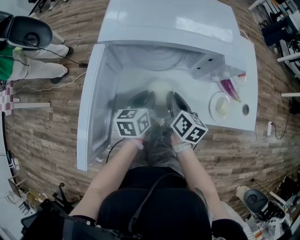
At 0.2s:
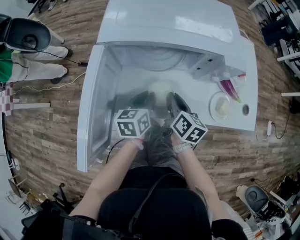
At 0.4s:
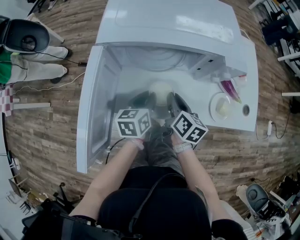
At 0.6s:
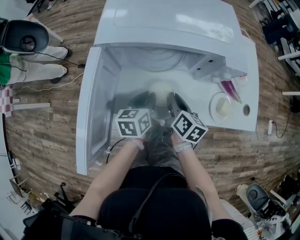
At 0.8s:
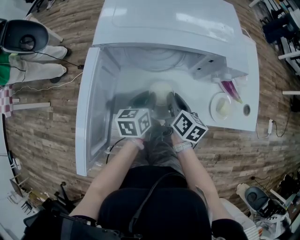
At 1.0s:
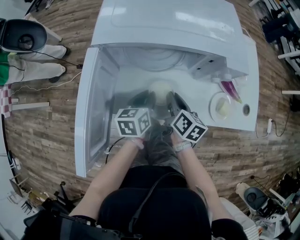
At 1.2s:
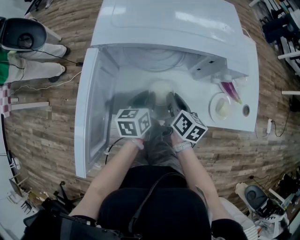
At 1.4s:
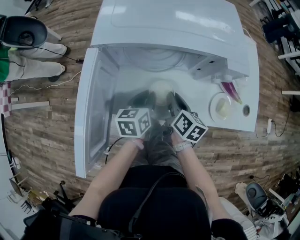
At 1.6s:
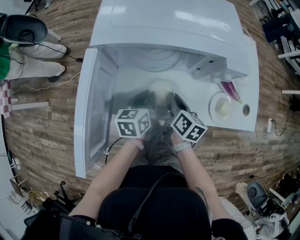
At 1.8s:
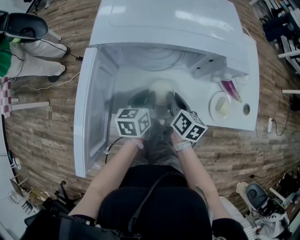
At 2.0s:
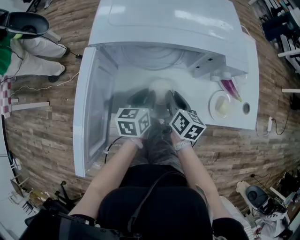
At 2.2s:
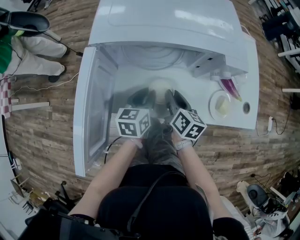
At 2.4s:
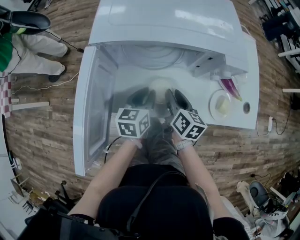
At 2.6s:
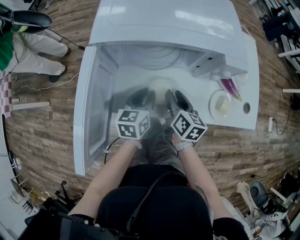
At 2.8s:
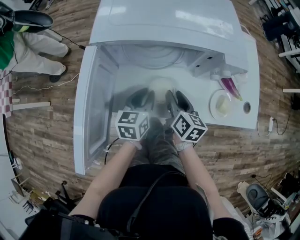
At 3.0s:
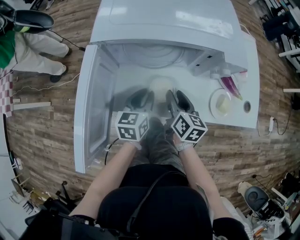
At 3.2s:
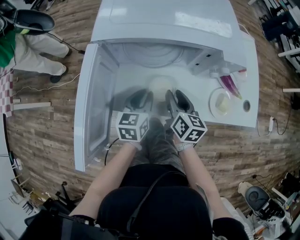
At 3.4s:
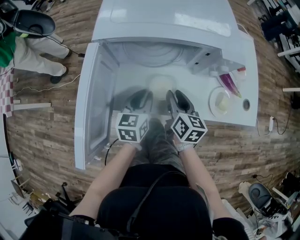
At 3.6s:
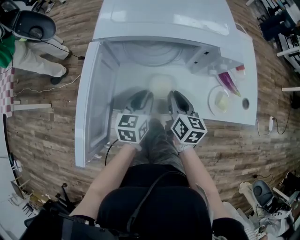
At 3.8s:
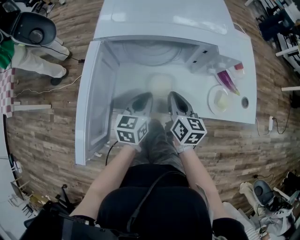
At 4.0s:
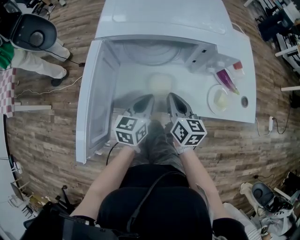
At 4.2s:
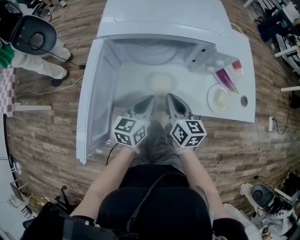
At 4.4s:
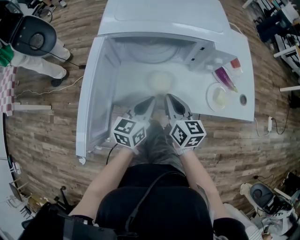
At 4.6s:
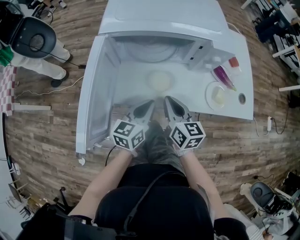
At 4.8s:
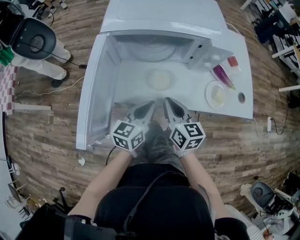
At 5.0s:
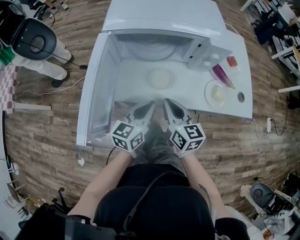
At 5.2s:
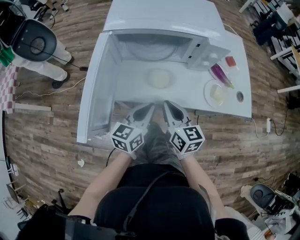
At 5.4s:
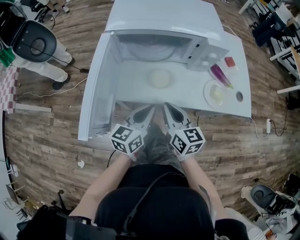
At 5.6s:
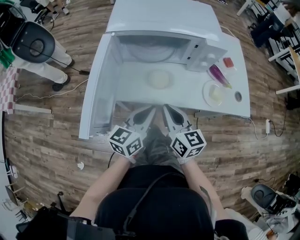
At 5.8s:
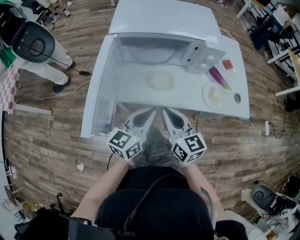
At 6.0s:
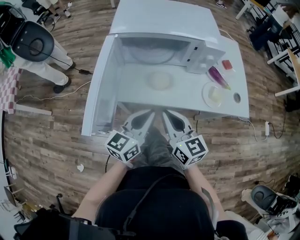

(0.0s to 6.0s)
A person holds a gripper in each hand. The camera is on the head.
0.0s - 3.0s: The grippers move only a little.
3.0s - 4.4s: The two grippers go roughly 5 cm backward. The right gripper closes its fingers.
4.4s - 6.0s: Both grippers move backward and upward, approximately 10 cm.

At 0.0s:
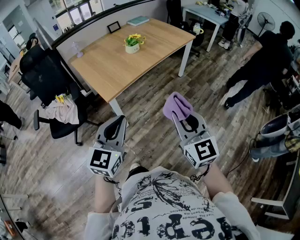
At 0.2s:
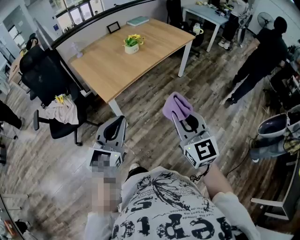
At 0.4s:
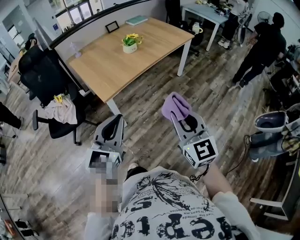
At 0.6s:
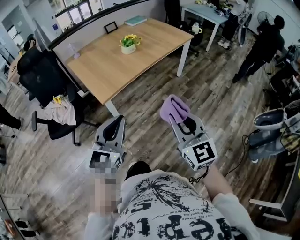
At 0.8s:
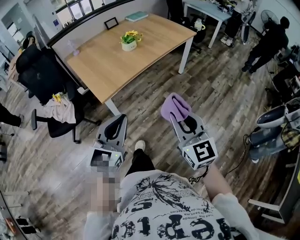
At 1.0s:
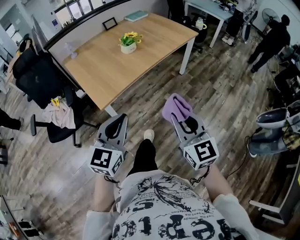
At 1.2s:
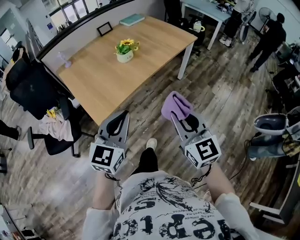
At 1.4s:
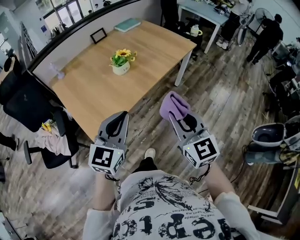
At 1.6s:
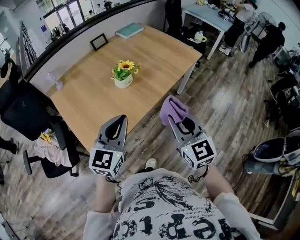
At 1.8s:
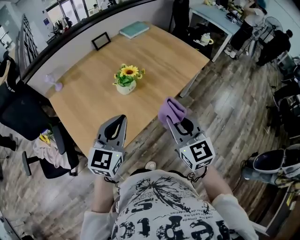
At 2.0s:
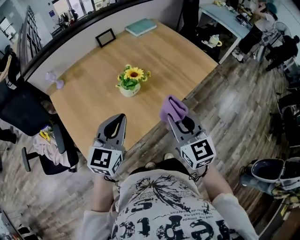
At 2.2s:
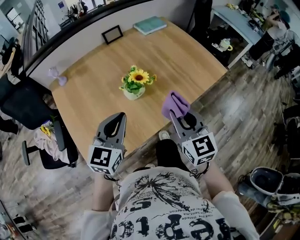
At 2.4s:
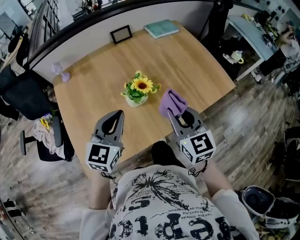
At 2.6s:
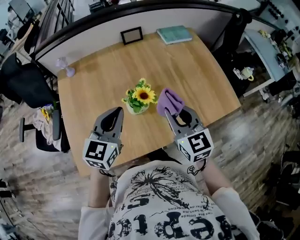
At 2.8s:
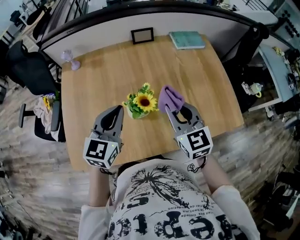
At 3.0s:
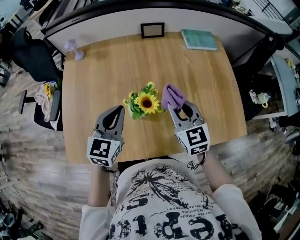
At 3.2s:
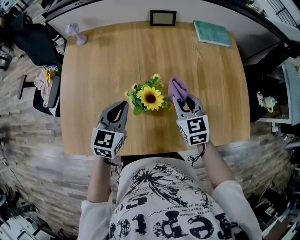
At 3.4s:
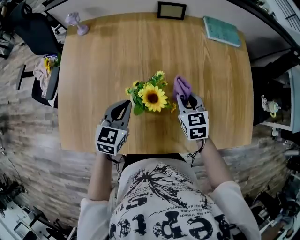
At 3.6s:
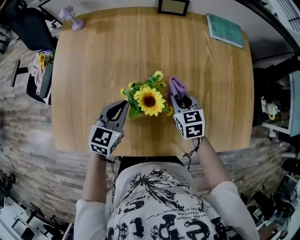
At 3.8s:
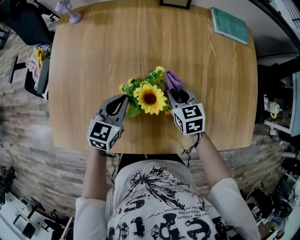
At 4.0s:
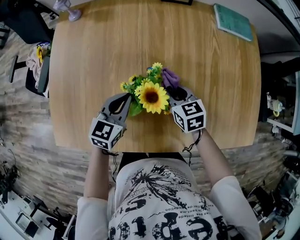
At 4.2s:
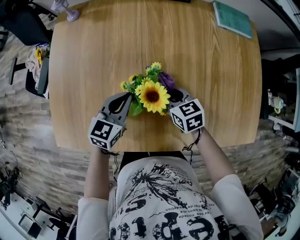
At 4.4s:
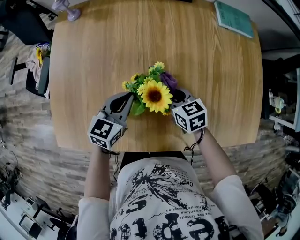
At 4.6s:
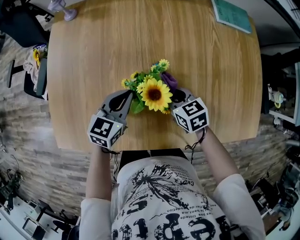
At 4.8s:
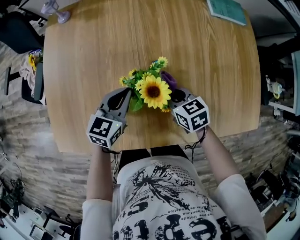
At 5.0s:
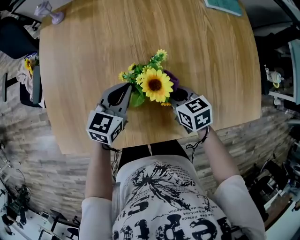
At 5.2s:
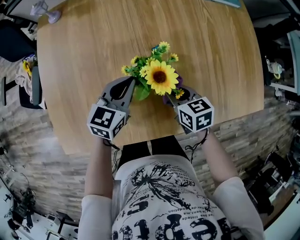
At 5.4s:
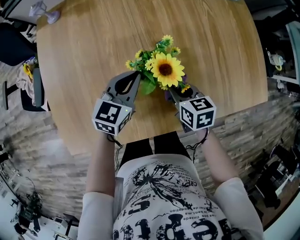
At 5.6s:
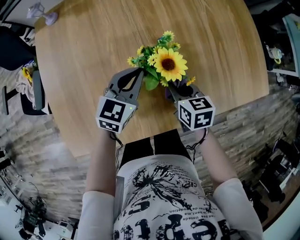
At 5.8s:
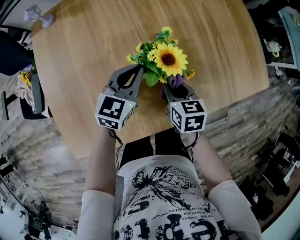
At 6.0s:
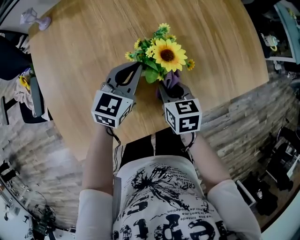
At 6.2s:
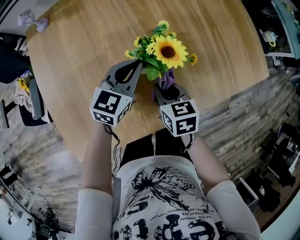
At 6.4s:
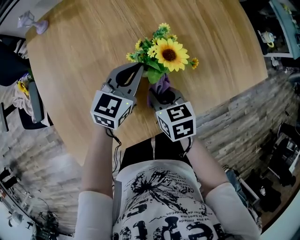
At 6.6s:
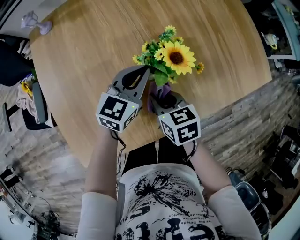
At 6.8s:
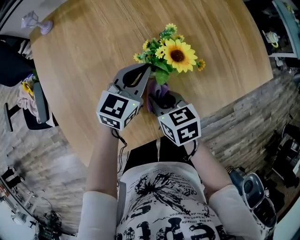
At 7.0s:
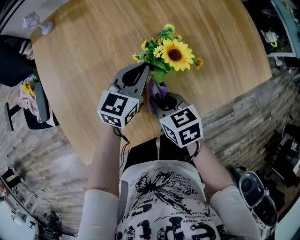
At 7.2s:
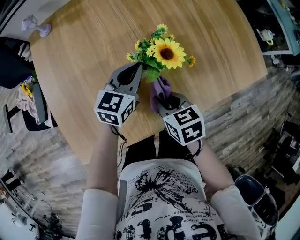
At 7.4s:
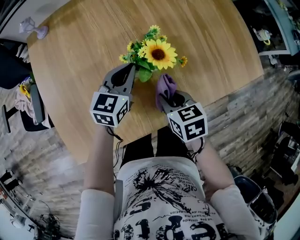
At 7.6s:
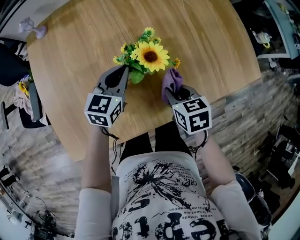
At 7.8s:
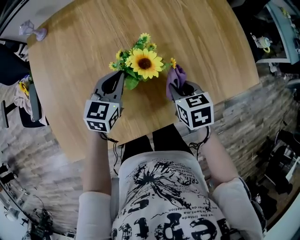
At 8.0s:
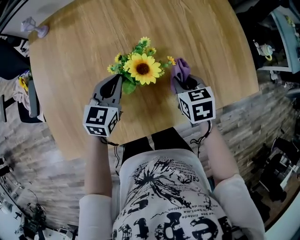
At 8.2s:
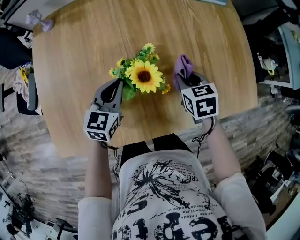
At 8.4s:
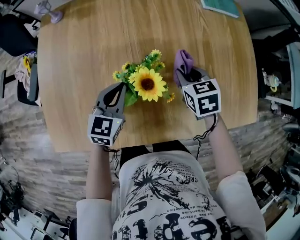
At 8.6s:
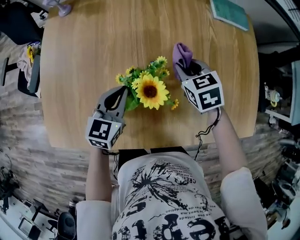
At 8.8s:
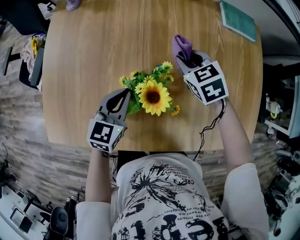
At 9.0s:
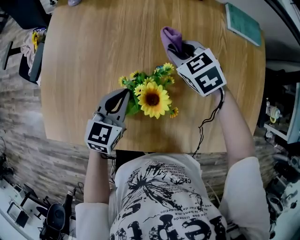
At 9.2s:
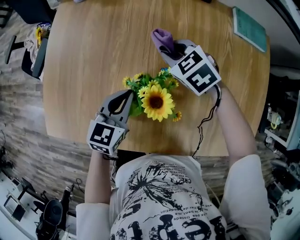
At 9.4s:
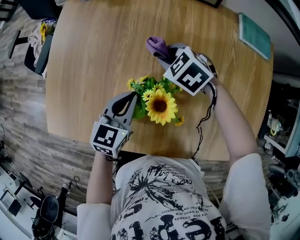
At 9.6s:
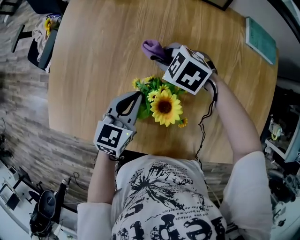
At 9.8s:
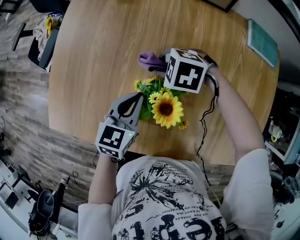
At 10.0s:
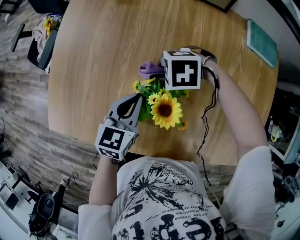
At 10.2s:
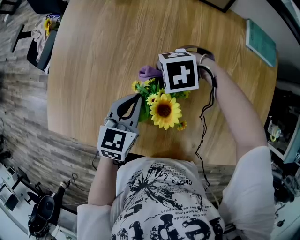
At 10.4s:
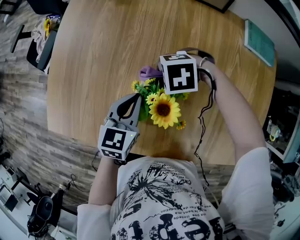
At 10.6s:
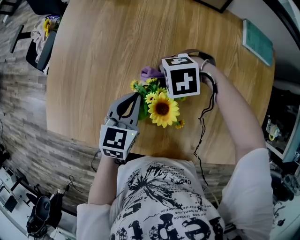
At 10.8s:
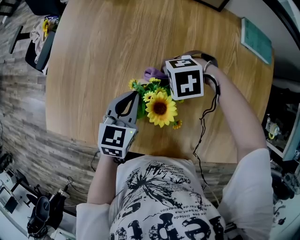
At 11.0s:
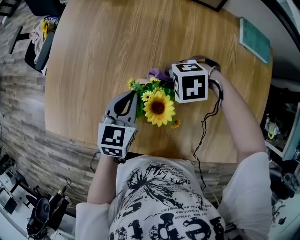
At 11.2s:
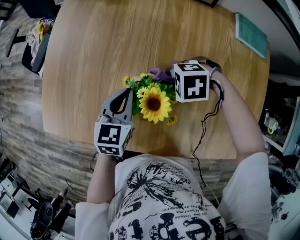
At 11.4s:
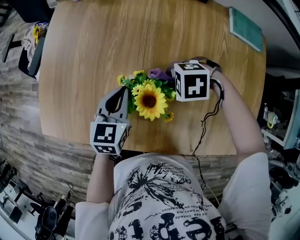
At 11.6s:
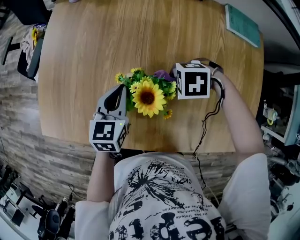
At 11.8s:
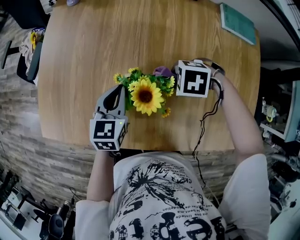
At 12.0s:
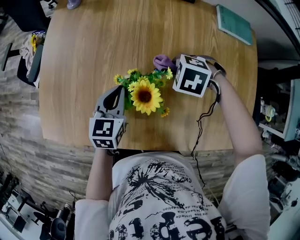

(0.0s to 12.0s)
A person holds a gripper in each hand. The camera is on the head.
0.0s - 1.6s: The two grippers travel together, forward, about 40 cm.
1.6s - 3.0s: The right gripper ends up roughly 50 cm from where it was, and rotates roughly 40 degrees; the left gripper ends up about 35 cm from where it was, and swivels some 40 degrees.
3.0s - 4.4s: The two grippers go roughly 20 cm downward. The right gripper turns by roughly 30 degrees.
4.4s - 6.0s: The right gripper shifts by roughly 10 cm, and turns by approximately 40 degrees. The left gripper turns by some 20 degrees.
6.0s - 7.6s: The right gripper heads to the right, covering about 5 cm.
7.6s - 9.0s: The left gripper turns by some 30 degrees; the right gripper ends up roughly 30 cm from where it was, and rotates around the line of its fingers by some 50 degrees, counterclockwise from behind.
9.0s - 10.4s: The right gripper changes place by roughly 15 cm, and swivels about 70 degrees.
10.4s - 12.0s: The right gripper changes place by about 10 cm, and swivels approximately 30 degrees.

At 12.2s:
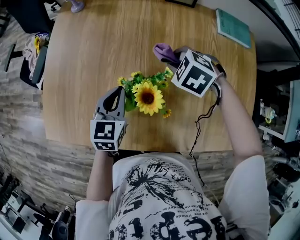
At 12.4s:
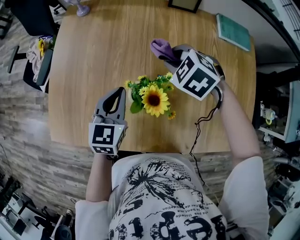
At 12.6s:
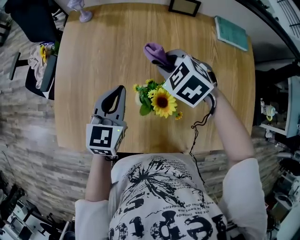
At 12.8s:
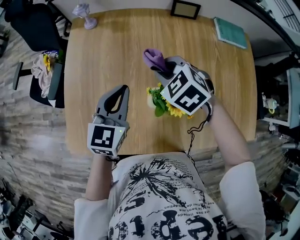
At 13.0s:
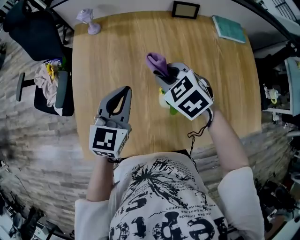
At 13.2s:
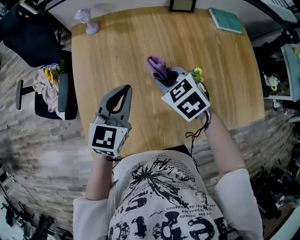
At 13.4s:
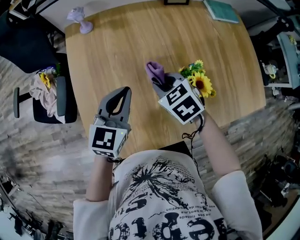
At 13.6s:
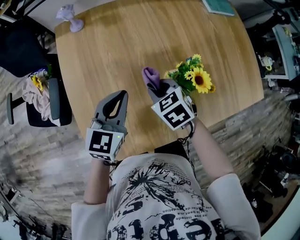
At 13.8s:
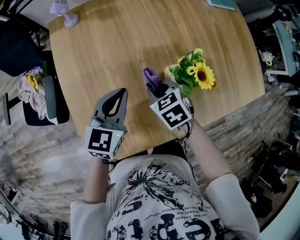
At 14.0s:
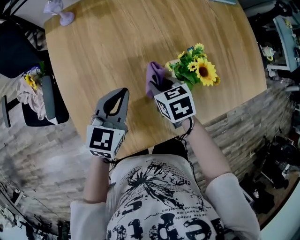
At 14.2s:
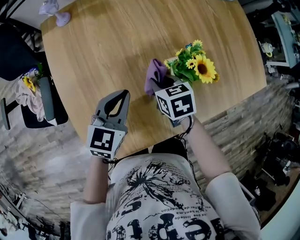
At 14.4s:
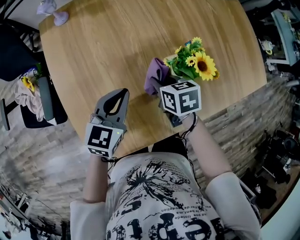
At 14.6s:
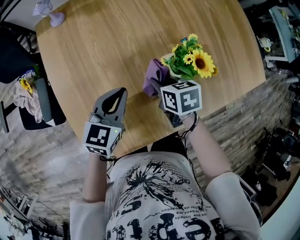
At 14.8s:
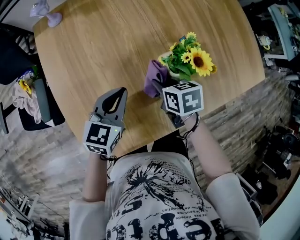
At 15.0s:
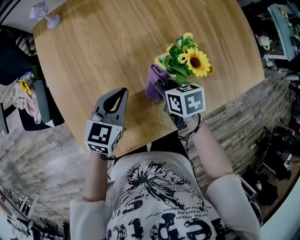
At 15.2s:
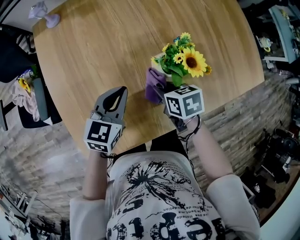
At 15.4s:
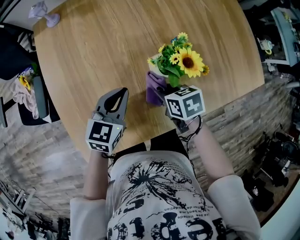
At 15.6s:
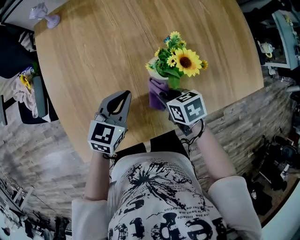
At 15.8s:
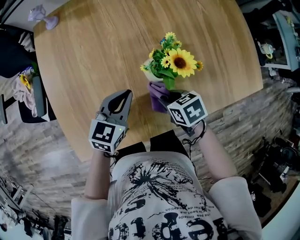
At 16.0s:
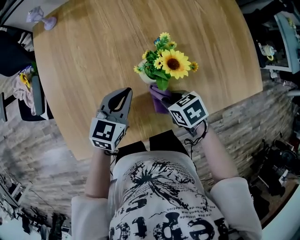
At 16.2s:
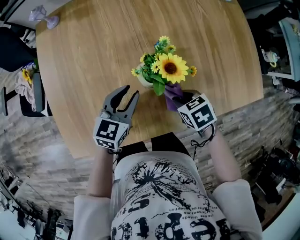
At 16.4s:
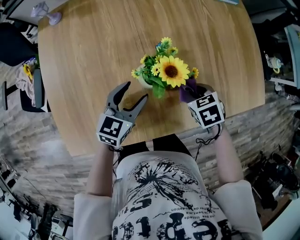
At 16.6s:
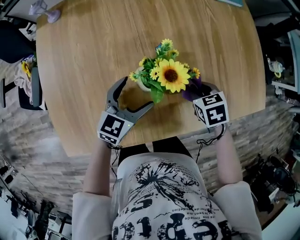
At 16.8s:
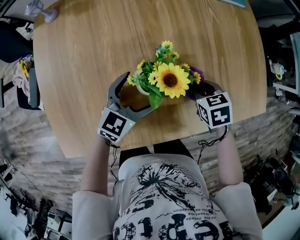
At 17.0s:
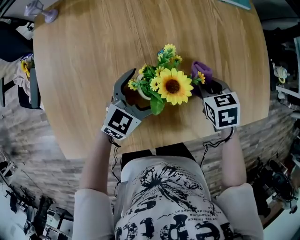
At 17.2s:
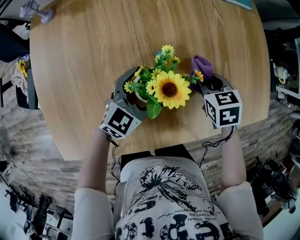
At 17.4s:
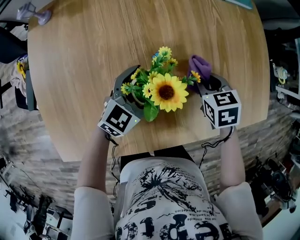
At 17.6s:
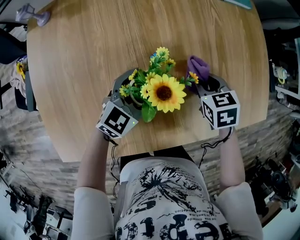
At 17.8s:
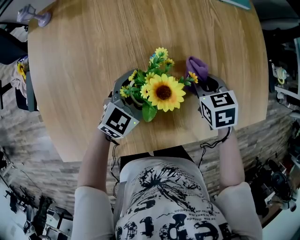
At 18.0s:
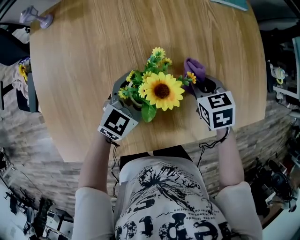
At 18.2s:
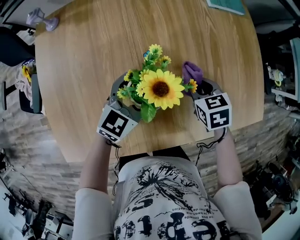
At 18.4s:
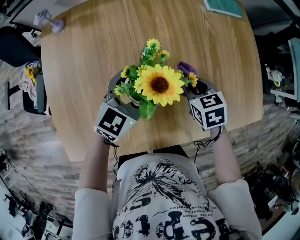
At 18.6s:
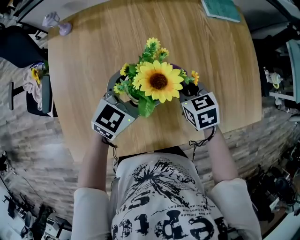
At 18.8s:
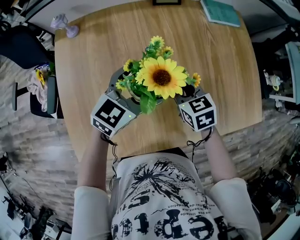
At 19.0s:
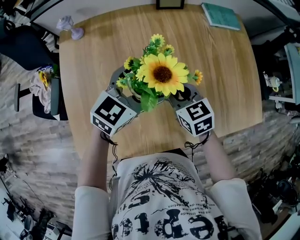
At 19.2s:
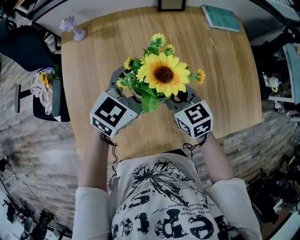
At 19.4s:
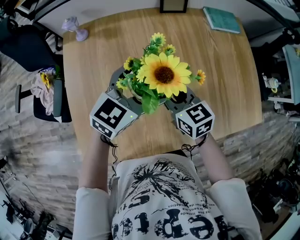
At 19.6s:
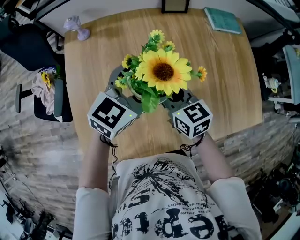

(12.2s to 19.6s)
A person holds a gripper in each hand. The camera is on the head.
12.2s - 13.6s: The right gripper moves roughly 10 cm upward and comes back, and rotates around the line of its fingers by some 50 degrees, clockwise from behind. Meanwhile the left gripper moves some 20 cm, and changes its angle by about 30 degrees.
13.6s - 15.2s: The left gripper shifts roughly 10 cm downward and to the right, while the right gripper shifts approximately 10 cm to the right and downward, and changes its angle by about 30 degrees.
15.2s - 16.6s: The grippers both shift to the right by some 20 cm. The right gripper rotates about 30 degrees. Meanwhile the left gripper opens.
16.6s - 18.2s: Both grippers move forward, roughly 5 cm.
18.2s - 19.6s: The left gripper heads upward and to the left, covering some 20 cm, while the right gripper heads to the left and upward, covering about 25 cm, and tips its fingers upward by roughly 30 degrees.
